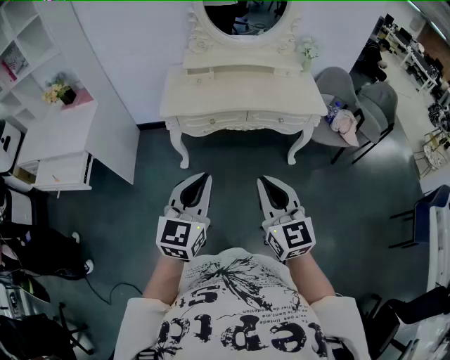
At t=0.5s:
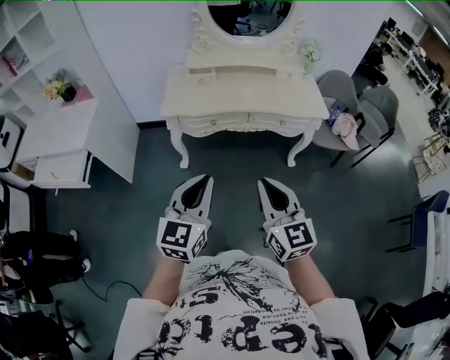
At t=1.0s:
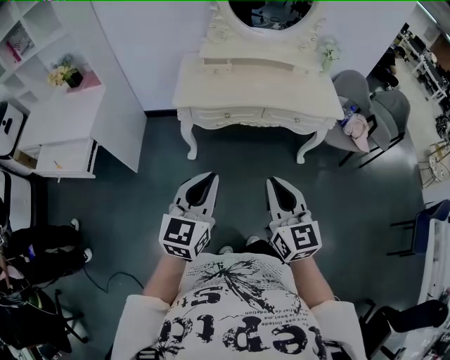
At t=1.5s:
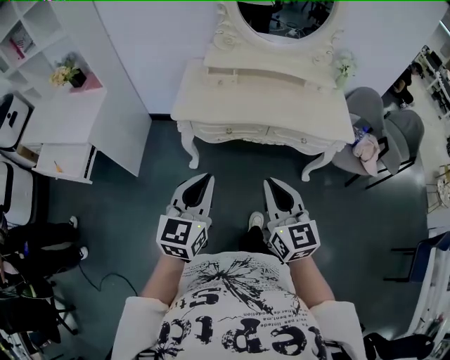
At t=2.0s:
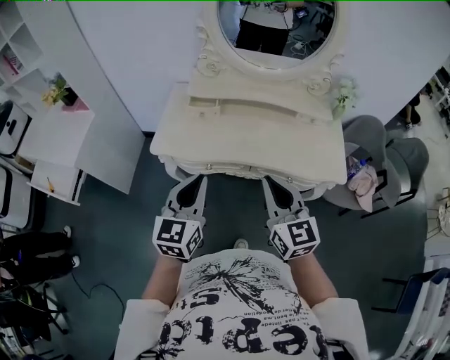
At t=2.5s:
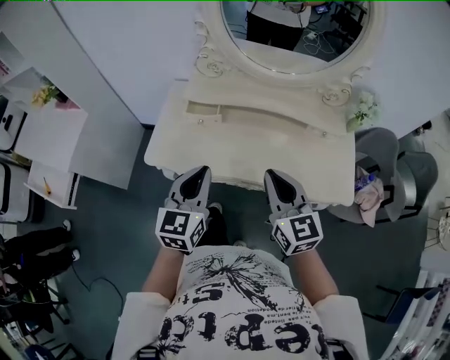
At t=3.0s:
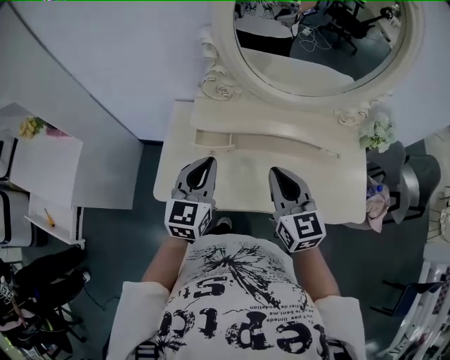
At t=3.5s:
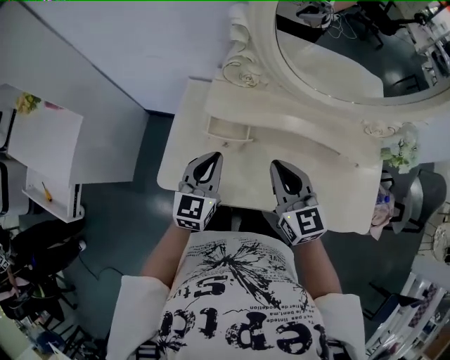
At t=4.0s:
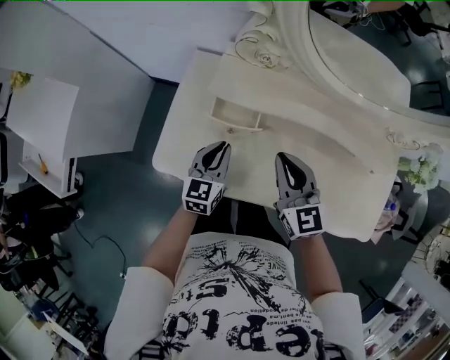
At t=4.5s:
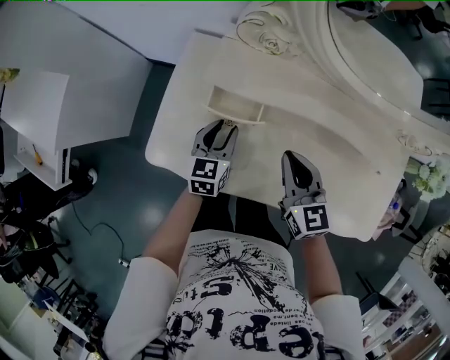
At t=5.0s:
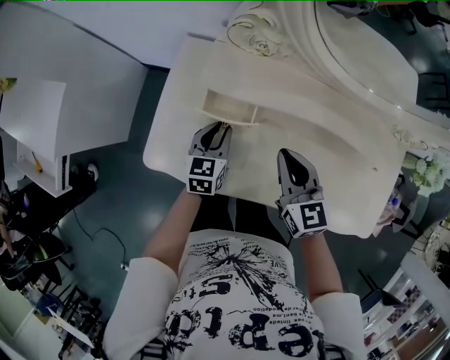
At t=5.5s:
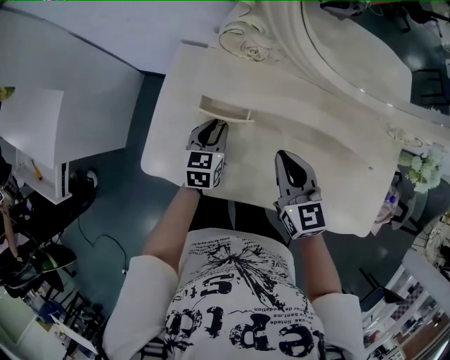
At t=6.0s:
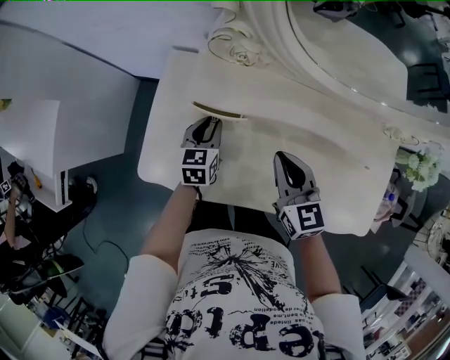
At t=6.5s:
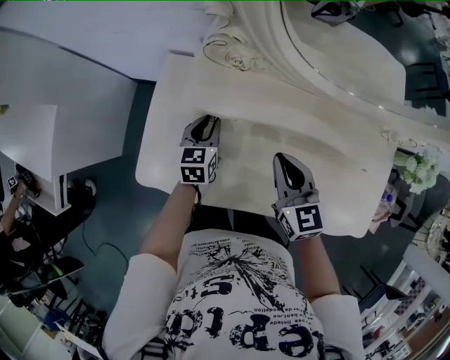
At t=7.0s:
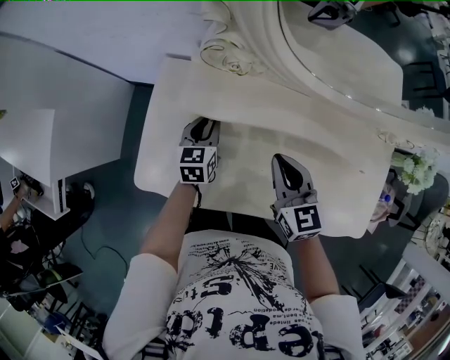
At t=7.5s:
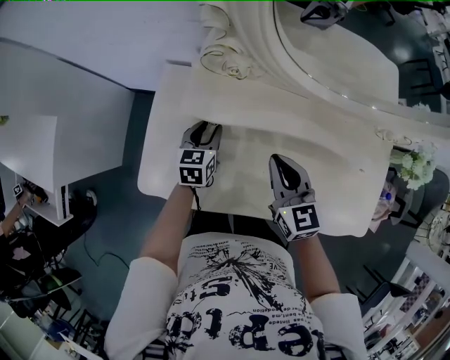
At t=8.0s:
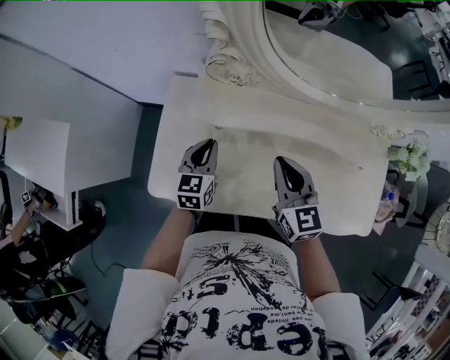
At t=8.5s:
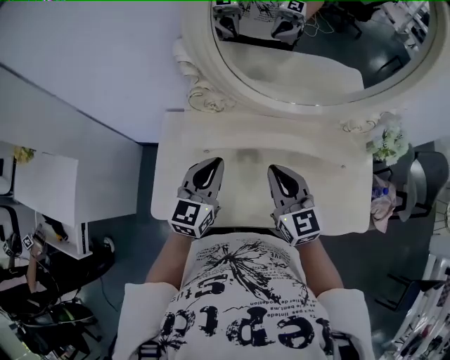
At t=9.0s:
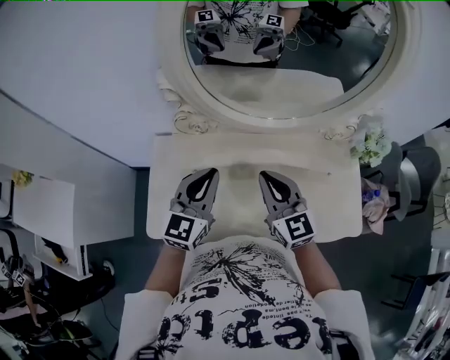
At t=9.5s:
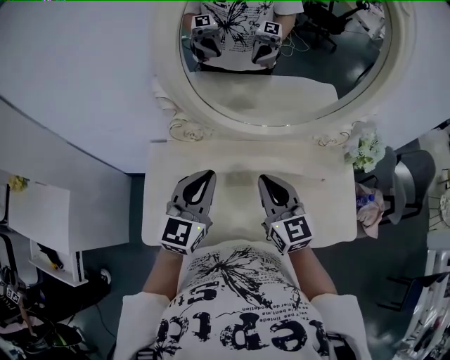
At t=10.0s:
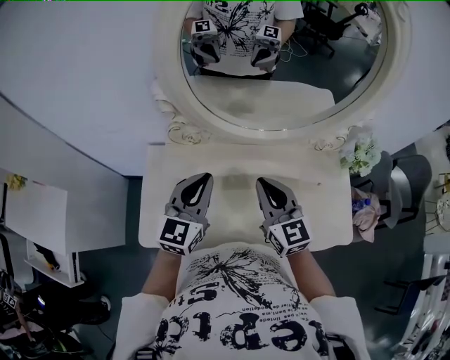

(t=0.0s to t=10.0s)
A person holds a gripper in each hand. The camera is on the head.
t=0.0s - t=2.0s: The grippers both shift forward by roughly 35 cm.
t=2.0s - t=4.0s: Both grippers travel together forward and downward, about 40 cm.
t=4.0s - t=6.0s: The right gripper moves approximately 5 cm. Meanwhile the left gripper moves forward and downward, approximately 10 cm.
t=6.0s - t=8.0s: The left gripper travels upward by approximately 5 cm.
t=8.0s - t=10.0s: The right gripper heads upward and to the right, covering some 15 cm. Meanwhile the left gripper heads upward and to the right, covering roughly 25 cm, and turns by some 30 degrees.

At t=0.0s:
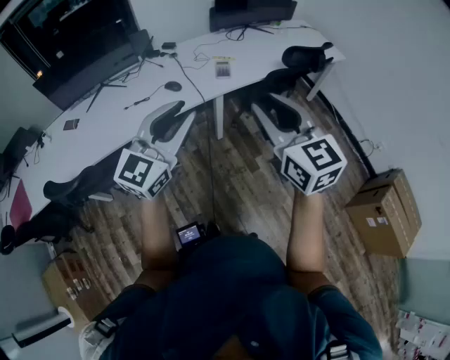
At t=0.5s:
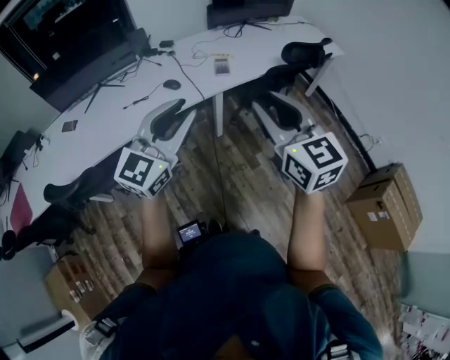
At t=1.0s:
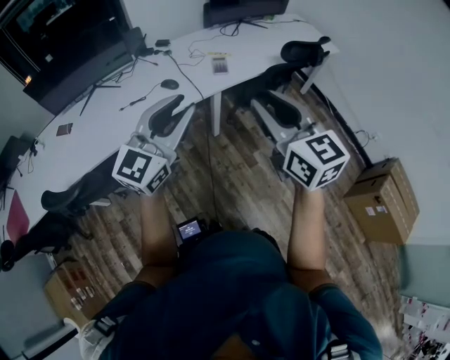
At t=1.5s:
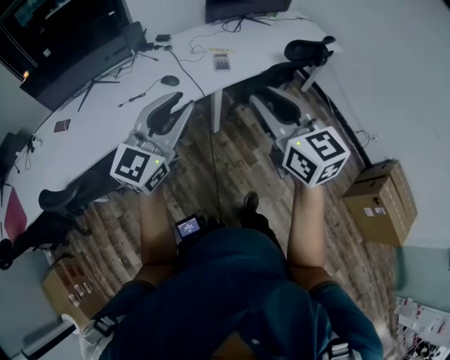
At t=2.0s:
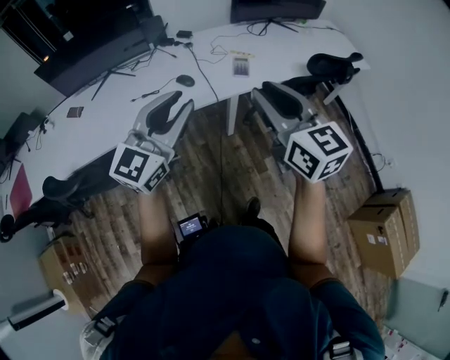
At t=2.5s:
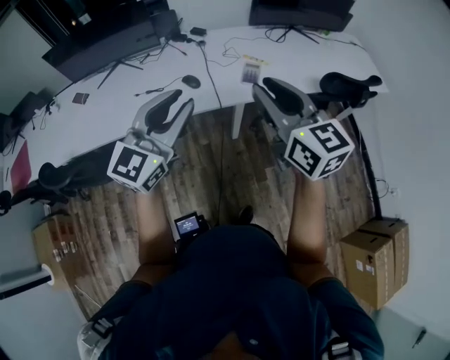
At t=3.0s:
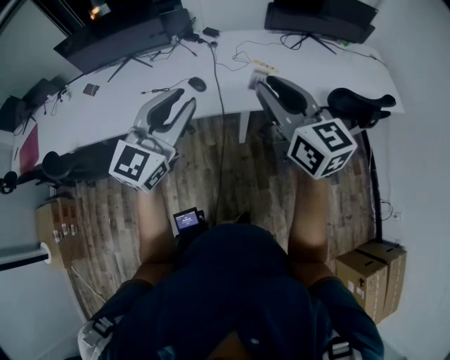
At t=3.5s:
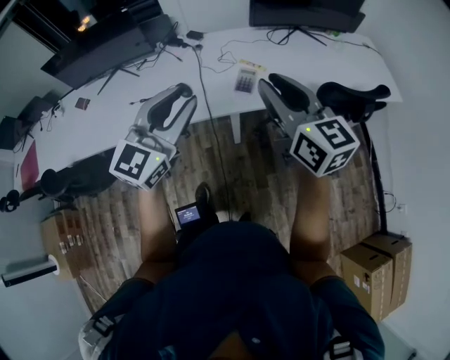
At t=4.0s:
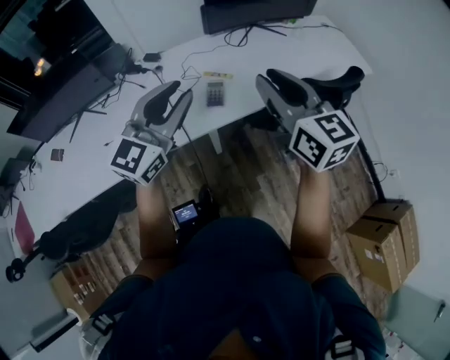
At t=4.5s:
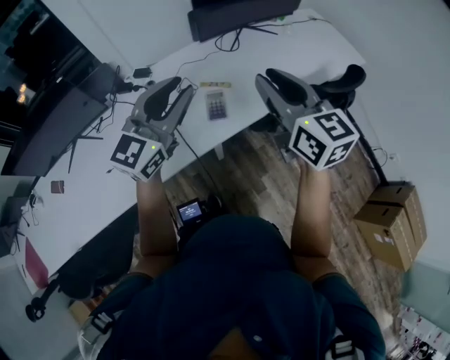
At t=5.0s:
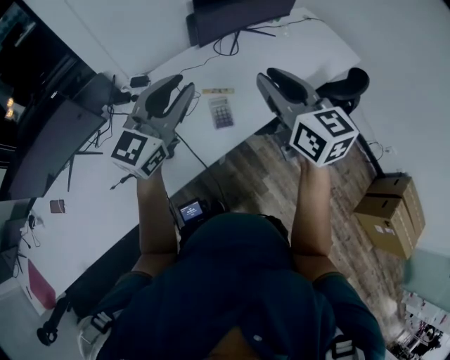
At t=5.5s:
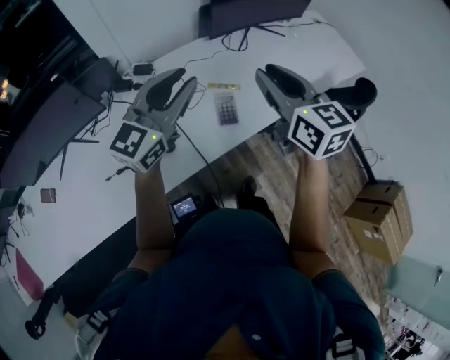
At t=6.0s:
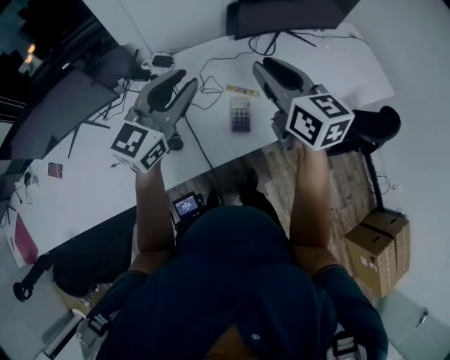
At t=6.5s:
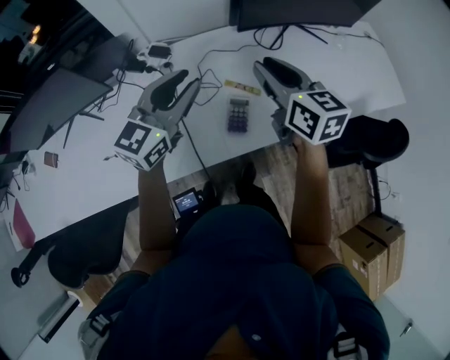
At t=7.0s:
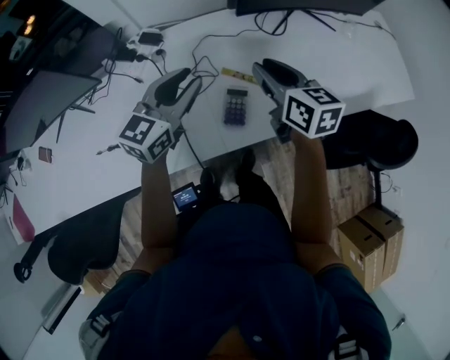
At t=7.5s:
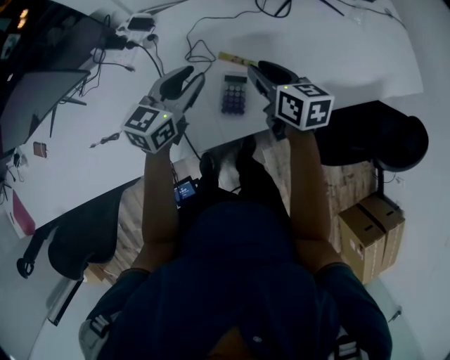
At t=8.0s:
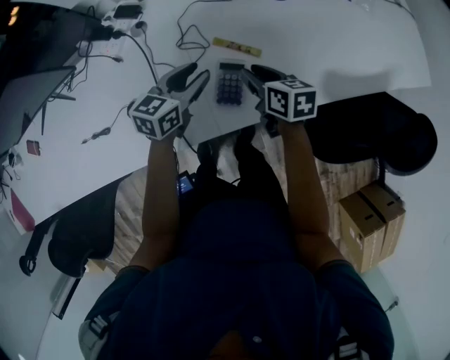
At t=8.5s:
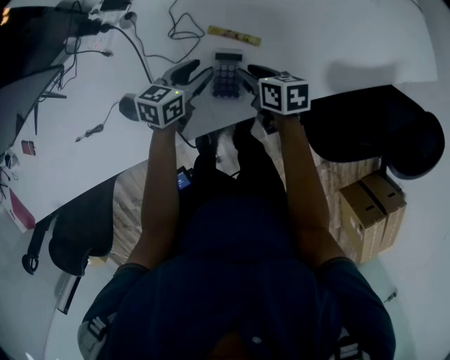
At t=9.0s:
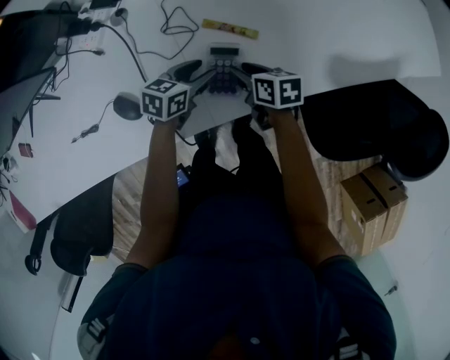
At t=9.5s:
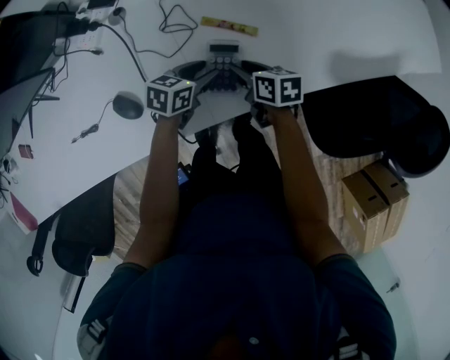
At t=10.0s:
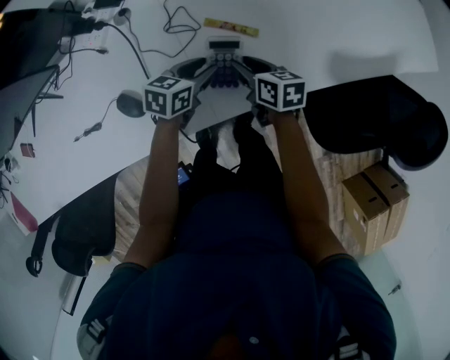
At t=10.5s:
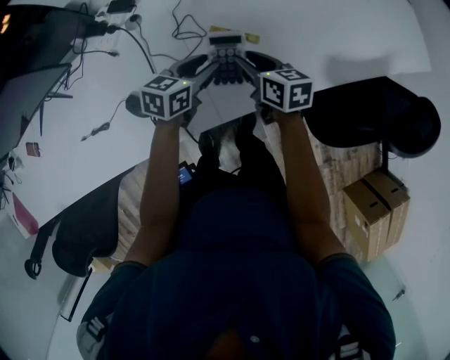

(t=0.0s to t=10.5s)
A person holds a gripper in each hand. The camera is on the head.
t=0.0s - t=2.0s: Both grippers travel together forward, approximately 10 cm.
t=2.0s - t=4.0s: Both grippers travel together forward and to the right, some 30 cm.
t=4.0s - t=6.5s: The two grippers go some 30 cm forward and to the left.
t=6.5s - t=8.5s: Both grippers move downward, about 35 cm. The left gripper rotates approximately 40 degrees, while the right gripper turns by about 40 degrees.
t=8.5s - t=10.5s: The right gripper moves upward, approximately 5 cm.

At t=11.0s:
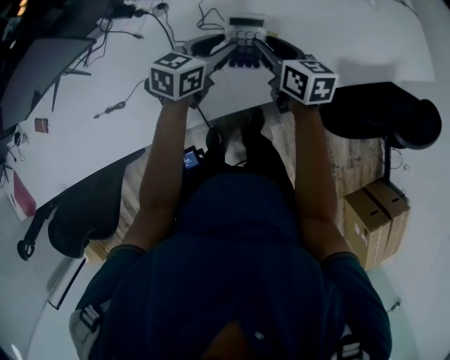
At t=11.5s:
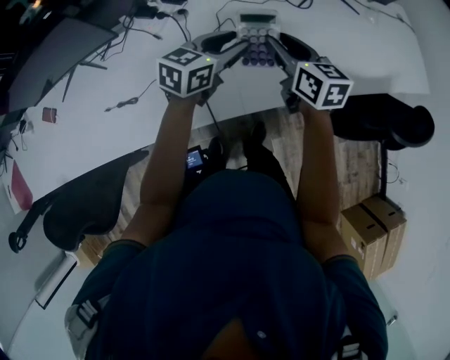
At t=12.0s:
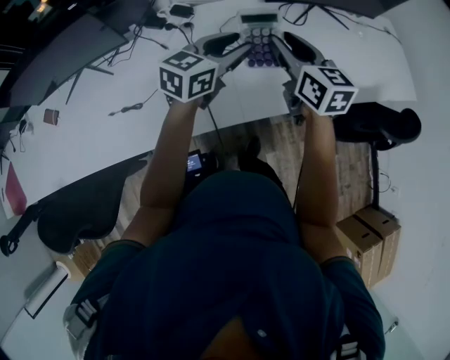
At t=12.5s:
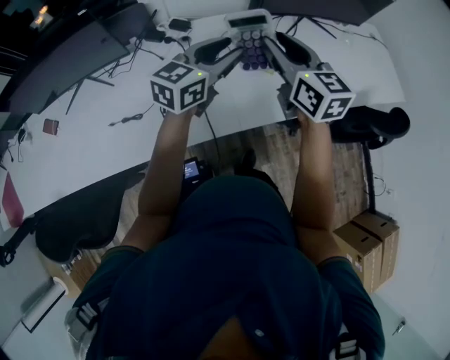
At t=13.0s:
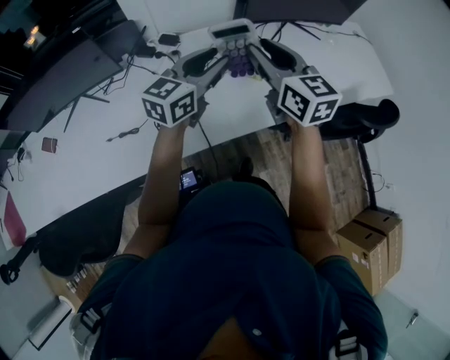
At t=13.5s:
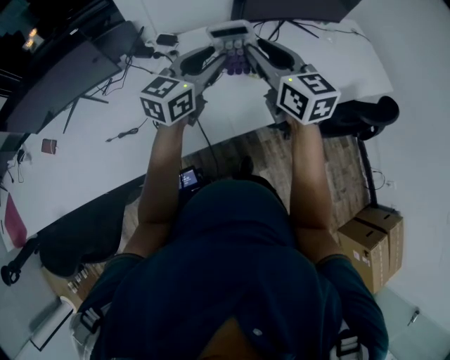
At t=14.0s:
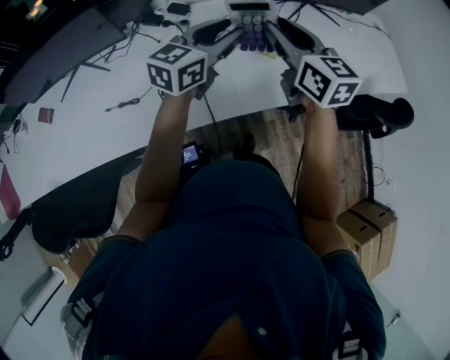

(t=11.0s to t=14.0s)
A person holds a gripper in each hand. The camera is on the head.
t=11.0s - t=12.5s: The two grippers go some 20 cm upward. The right gripper turns by about 30 degrees, while the left gripper changes its angle by approximately 20 degrees.
t=12.5s - t=14.0s: The grippers stay close to where they were, moving slightly.

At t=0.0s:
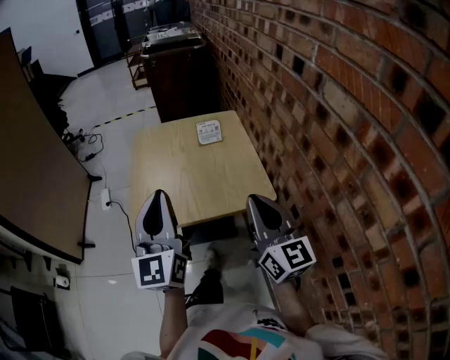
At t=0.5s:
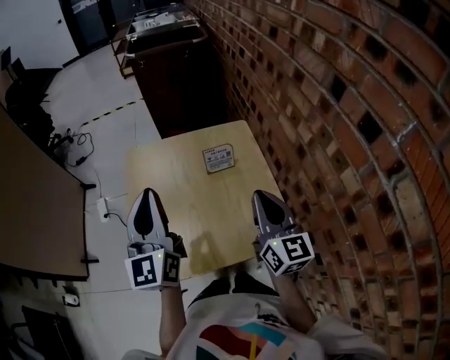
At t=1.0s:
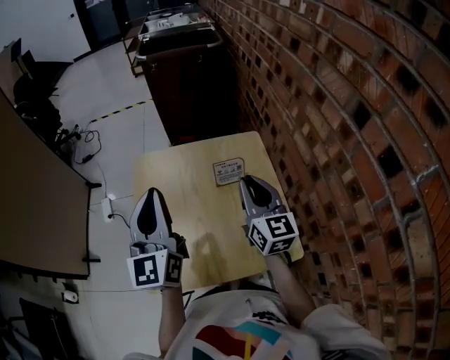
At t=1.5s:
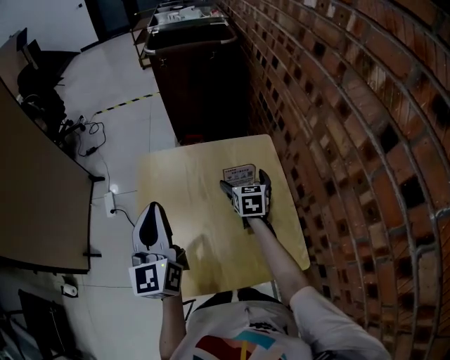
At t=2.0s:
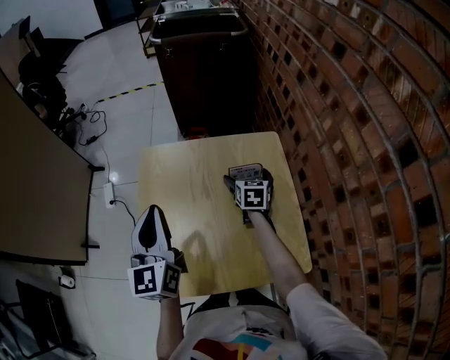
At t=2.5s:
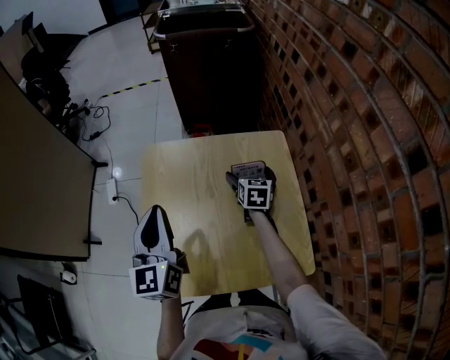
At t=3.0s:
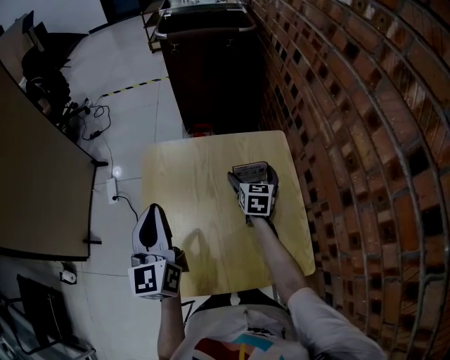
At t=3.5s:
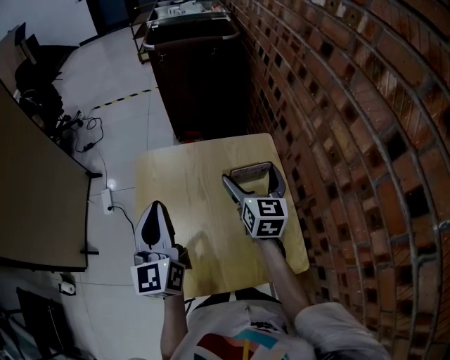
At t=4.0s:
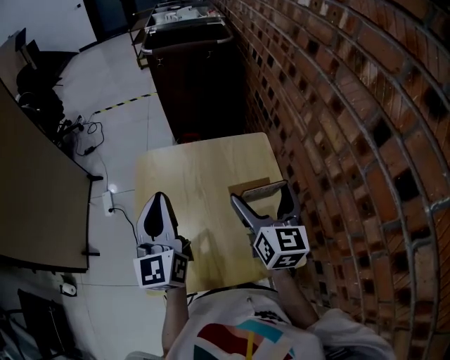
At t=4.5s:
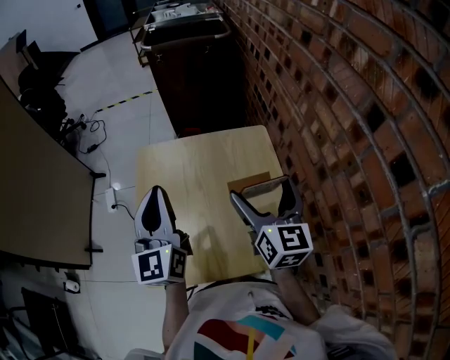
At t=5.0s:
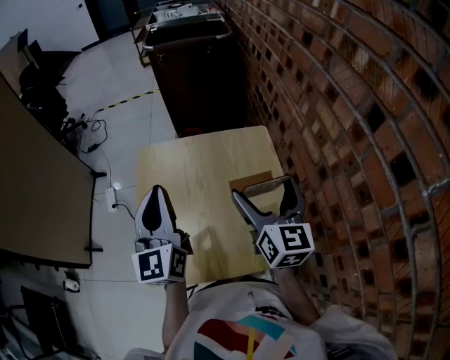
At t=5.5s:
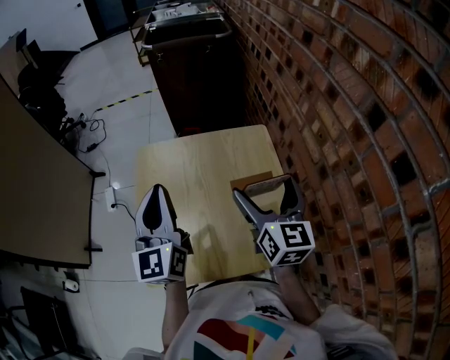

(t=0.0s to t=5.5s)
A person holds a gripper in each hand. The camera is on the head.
t=0.0s - t=2.0s: The left gripper goes some 30 cm forward, and swivels some 20 degrees; the right gripper heads forward and downward, covering roughly 60 cm, angles its fingers downward, by some 50 degrees, and opens.
t=2.0s - t=3.5s: The right gripper heads upward, covering approximately 15 cm, and turns by roughly 20 degrees.
t=3.5s - t=5.5s: The right gripper shifts about 15 cm backward and upward.
